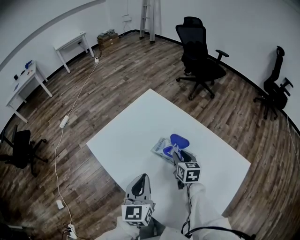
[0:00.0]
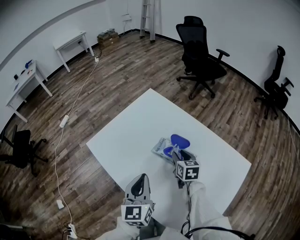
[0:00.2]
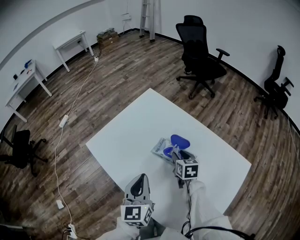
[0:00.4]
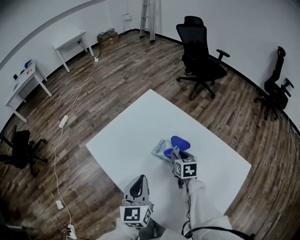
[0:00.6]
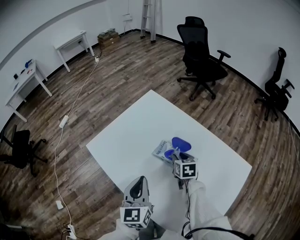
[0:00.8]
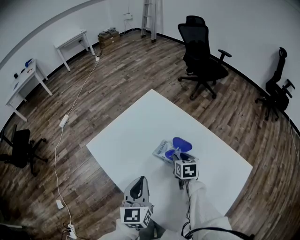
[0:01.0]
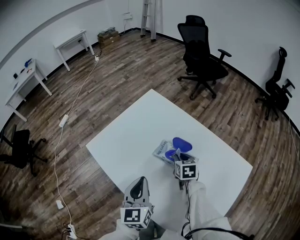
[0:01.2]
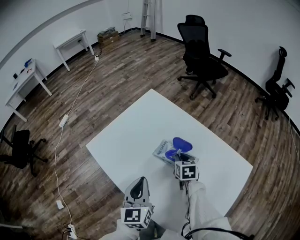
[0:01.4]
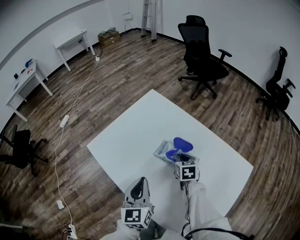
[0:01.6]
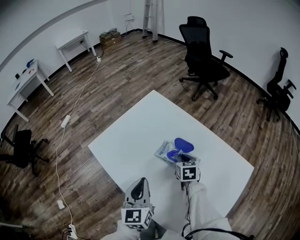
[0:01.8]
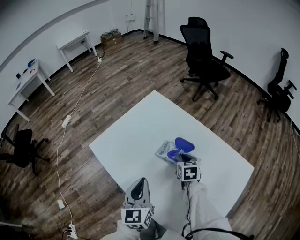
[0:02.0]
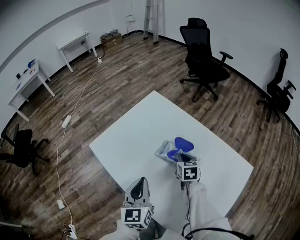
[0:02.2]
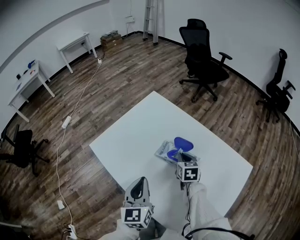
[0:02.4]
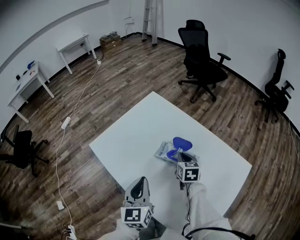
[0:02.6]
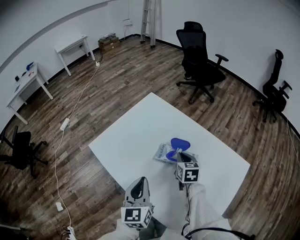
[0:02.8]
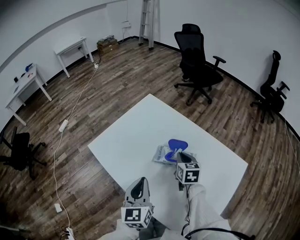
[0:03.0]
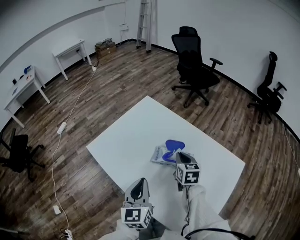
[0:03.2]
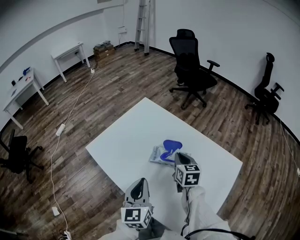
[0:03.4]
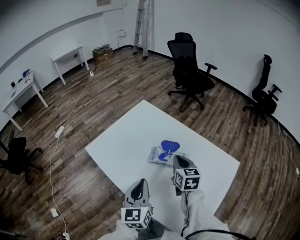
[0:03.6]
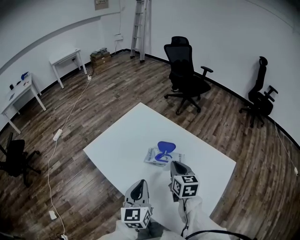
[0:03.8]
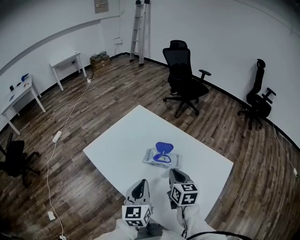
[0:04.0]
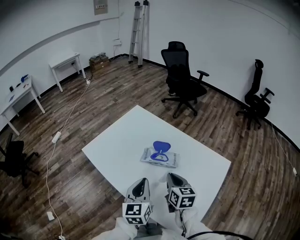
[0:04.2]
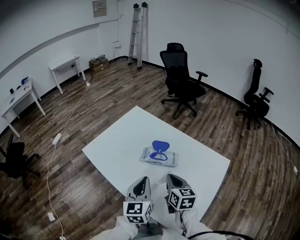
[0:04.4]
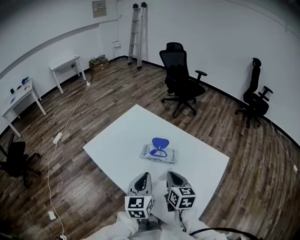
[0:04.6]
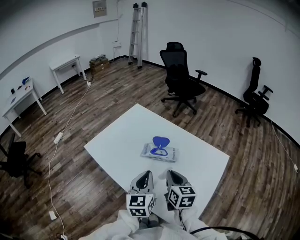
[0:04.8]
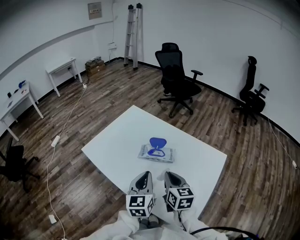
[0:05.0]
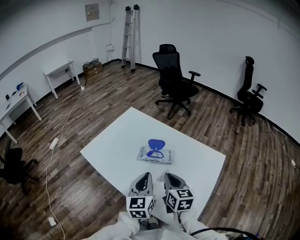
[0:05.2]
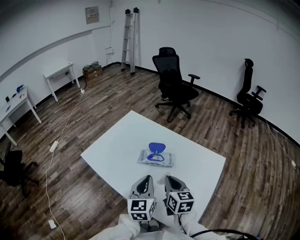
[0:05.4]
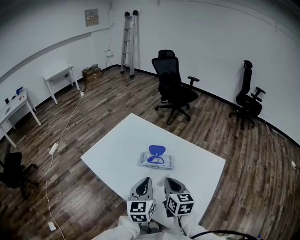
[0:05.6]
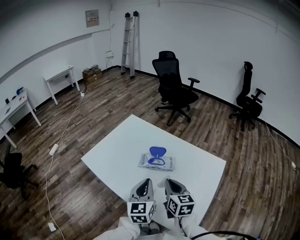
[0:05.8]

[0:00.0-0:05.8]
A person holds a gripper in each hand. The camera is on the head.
0:00.0 to 0:01.4: The grippers stay close to where they were, moving slightly.
0:01.4 to 0:02.8: The right gripper shifts roughly 5 cm upward.
0:02.8 to 0:04.4: The right gripper shifts roughly 20 cm backward and upward; the left gripper moves to the right and backward, approximately 10 cm.
0:04.4 to 0:05.8: There are only small adjustments of the grippers.

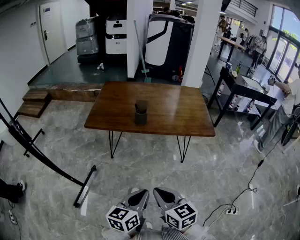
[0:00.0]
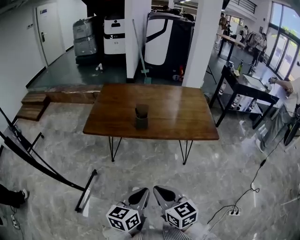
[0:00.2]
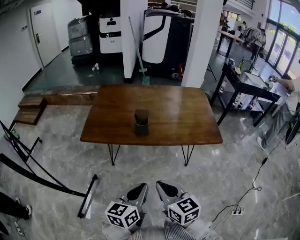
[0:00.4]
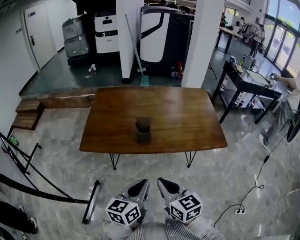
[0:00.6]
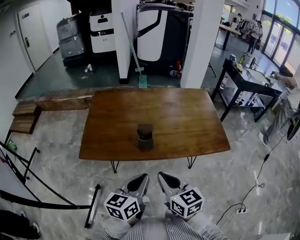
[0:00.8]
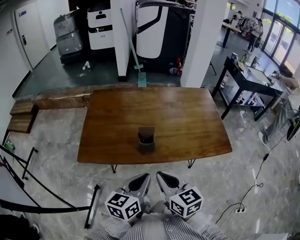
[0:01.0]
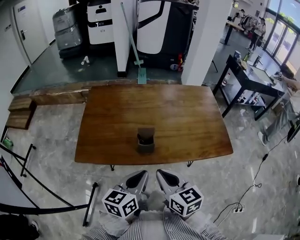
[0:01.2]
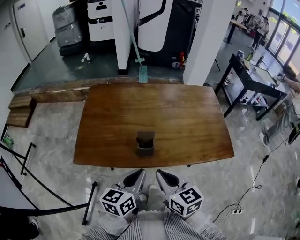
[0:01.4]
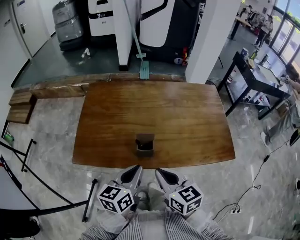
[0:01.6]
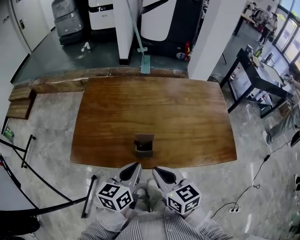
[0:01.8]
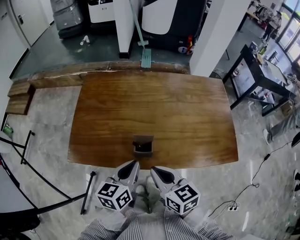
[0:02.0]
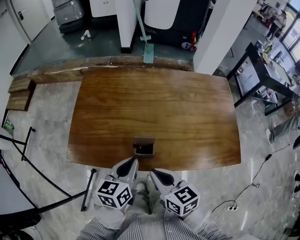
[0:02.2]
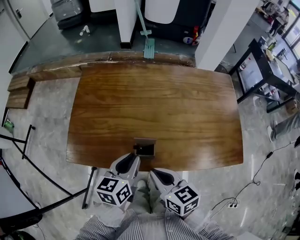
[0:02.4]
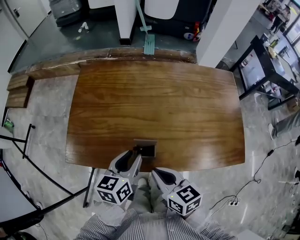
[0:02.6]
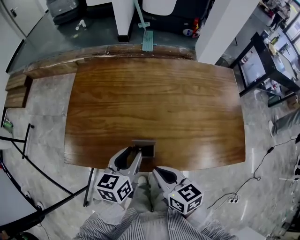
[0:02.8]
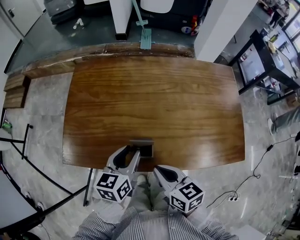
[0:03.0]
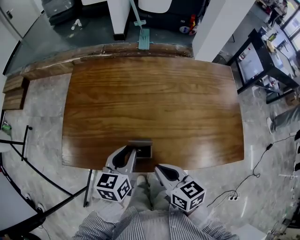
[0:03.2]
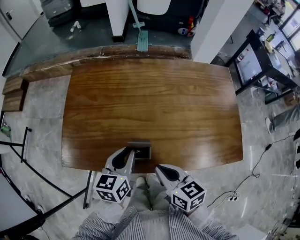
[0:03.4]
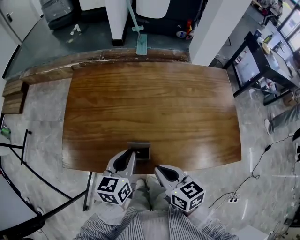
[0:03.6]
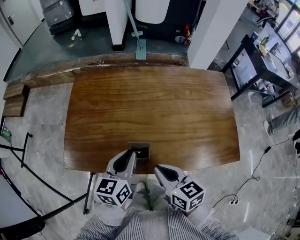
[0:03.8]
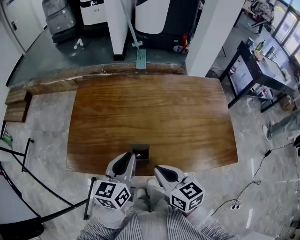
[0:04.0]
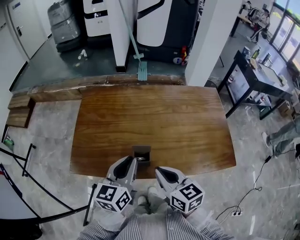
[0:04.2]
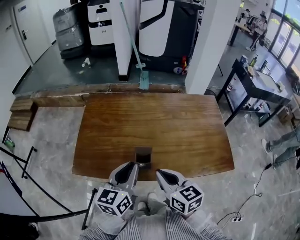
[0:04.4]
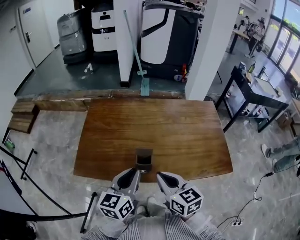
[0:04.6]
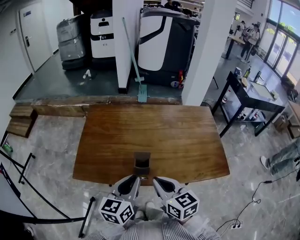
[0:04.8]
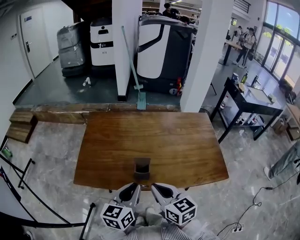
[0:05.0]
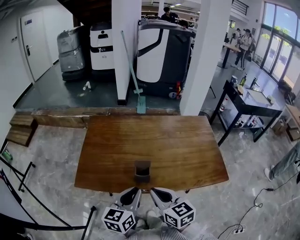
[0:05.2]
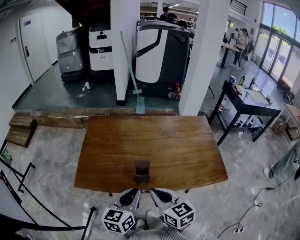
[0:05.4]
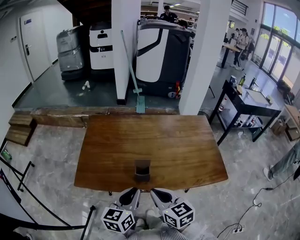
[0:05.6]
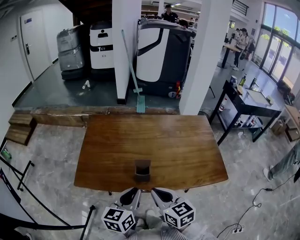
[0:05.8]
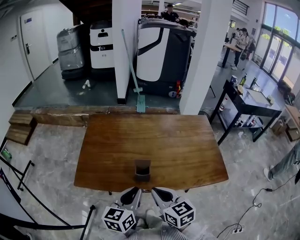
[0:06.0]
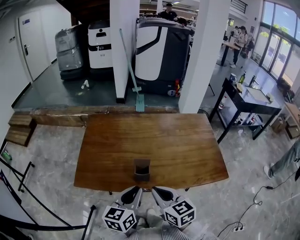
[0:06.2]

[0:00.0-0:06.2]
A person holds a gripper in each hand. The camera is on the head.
0:00.0 to 0:01.6: Both grippers travel together forward, approximately 40 cm.
0:01.6 to 0:03.2: The right gripper heads downward and forward, covering about 10 cm; the left gripper moves forward and downward, roughly 15 cm.
0:03.2 to 0:04.6: The right gripper is displaced upward by some 10 cm. The left gripper shifts approximately 15 cm upward and backward.
0:04.6 to 0:06.2: There are only small adjustments of the grippers.

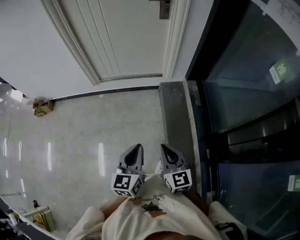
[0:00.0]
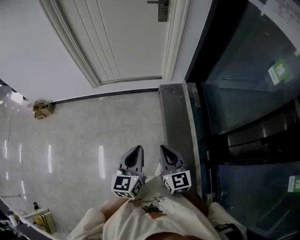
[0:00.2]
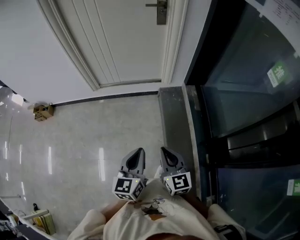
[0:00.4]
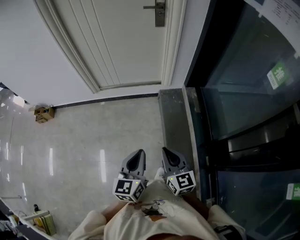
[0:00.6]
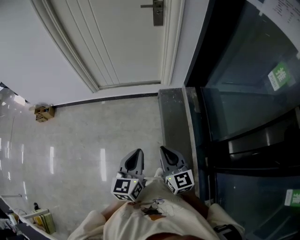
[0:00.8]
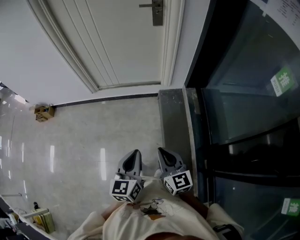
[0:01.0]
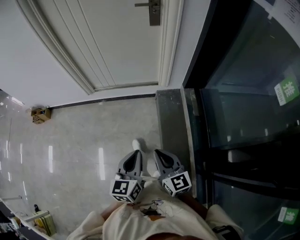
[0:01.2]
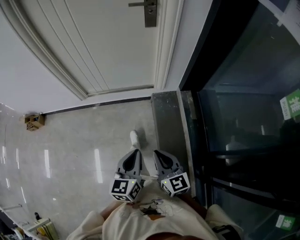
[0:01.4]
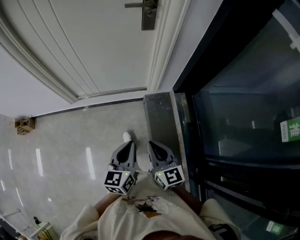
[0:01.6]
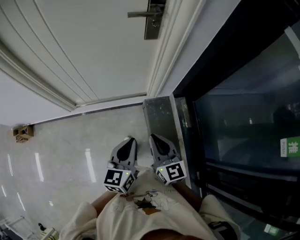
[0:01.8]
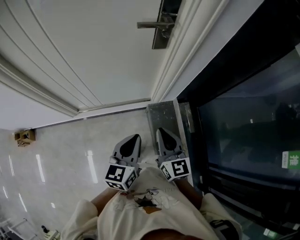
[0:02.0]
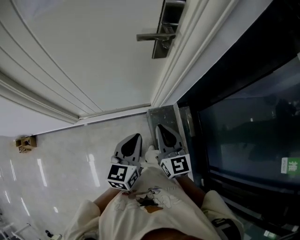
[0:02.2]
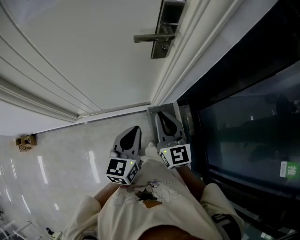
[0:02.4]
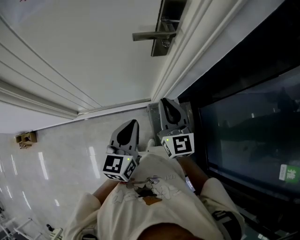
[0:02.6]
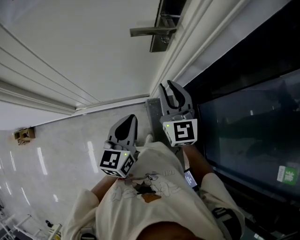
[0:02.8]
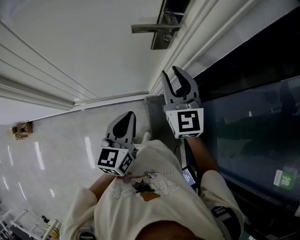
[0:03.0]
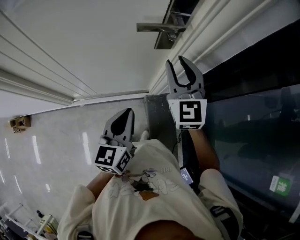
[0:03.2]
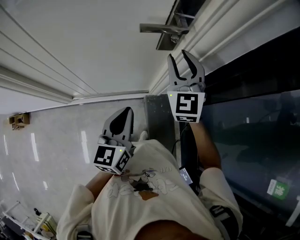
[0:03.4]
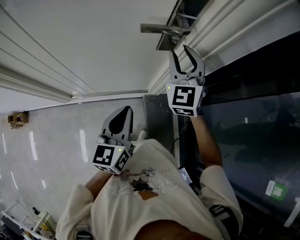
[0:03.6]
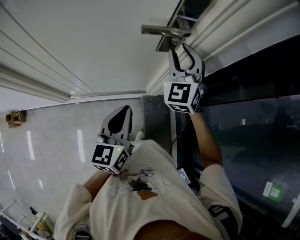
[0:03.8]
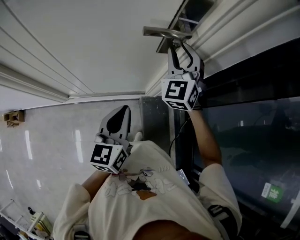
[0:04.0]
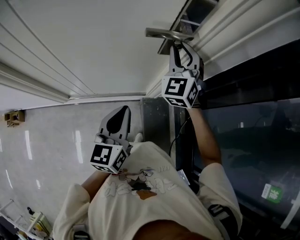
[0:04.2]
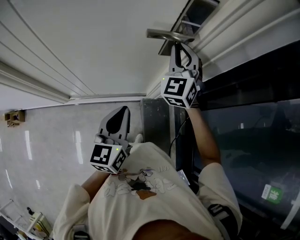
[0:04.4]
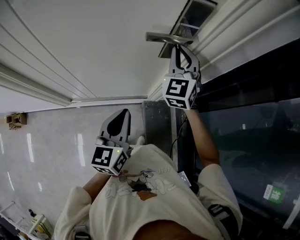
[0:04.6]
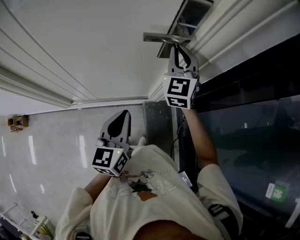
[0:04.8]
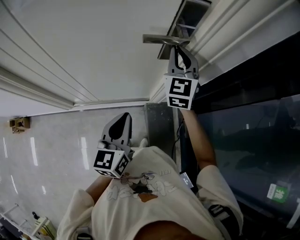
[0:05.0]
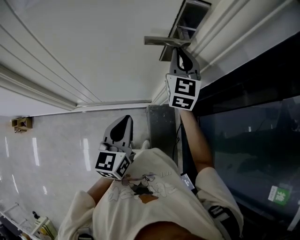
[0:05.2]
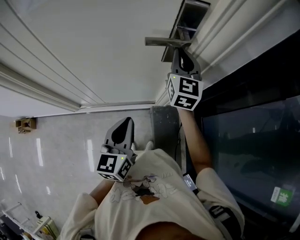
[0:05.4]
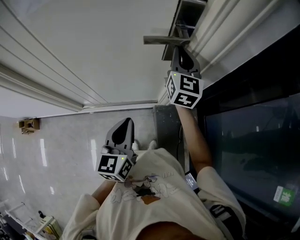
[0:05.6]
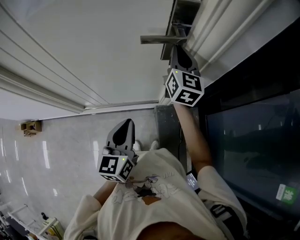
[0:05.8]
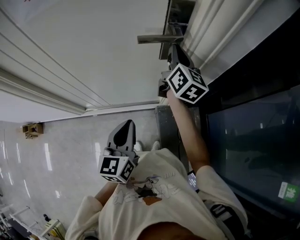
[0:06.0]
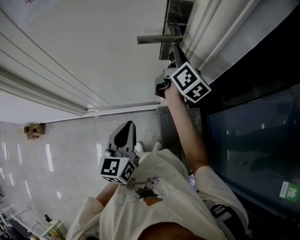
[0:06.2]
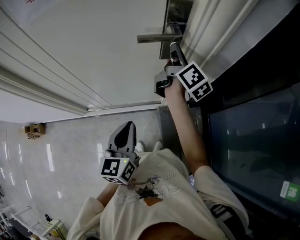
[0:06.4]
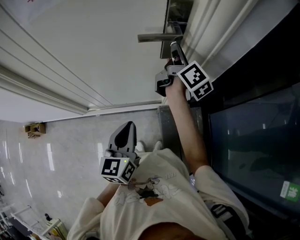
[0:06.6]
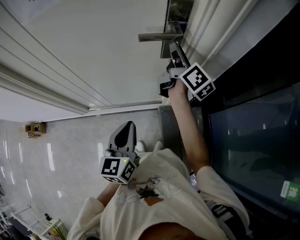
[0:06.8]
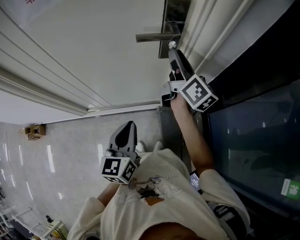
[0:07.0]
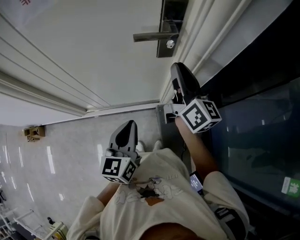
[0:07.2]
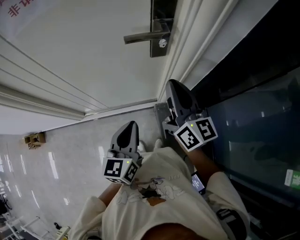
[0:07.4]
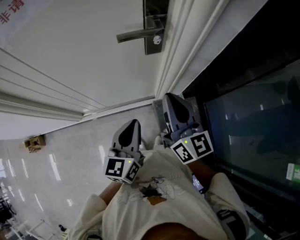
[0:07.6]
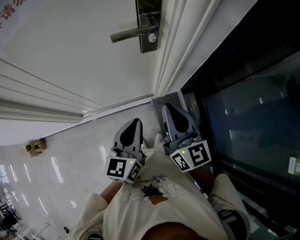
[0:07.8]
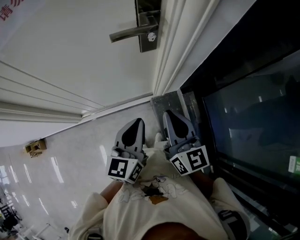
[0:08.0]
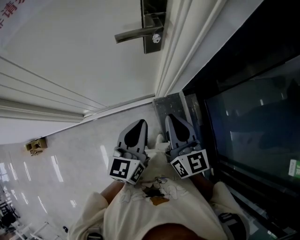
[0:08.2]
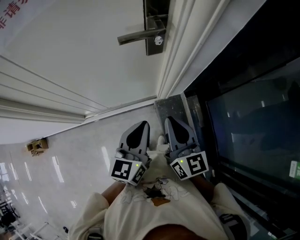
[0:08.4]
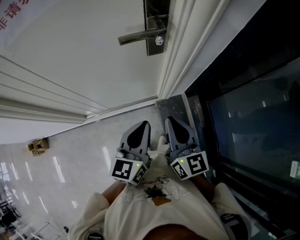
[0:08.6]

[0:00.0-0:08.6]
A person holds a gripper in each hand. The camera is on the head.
0:00.0 to 0:01.4: The right gripper goes about 20 cm forward; the left gripper is displaced forward and to the right by about 20 cm.
0:01.4 to 0:02.8: The two grippers travel together, forward, roughly 50 cm. The right gripper turns by about 30 degrees.
0:02.8 to 0:04.4: The right gripper shifts some 15 cm forward, and rotates some 30 degrees.
0:04.4 to 0:05.8: The right gripper rotates around the line of its fingers by about 50 degrees, clockwise from behind.
0:05.8 to 0:07.2: The right gripper travels backward by approximately 10 cm, and turns by some 30 degrees.
0:07.2 to 0:08.6: The right gripper goes about 15 cm backward and downward, and swivels roughly 20 degrees. Meanwhile the left gripper goes roughly 5 cm to the right.

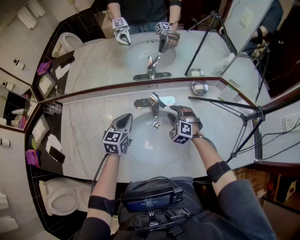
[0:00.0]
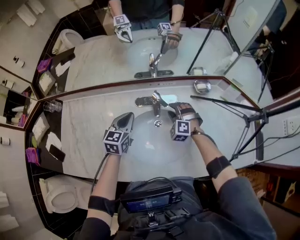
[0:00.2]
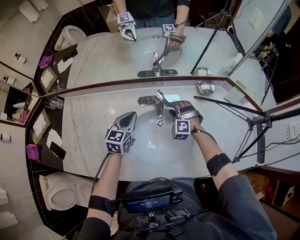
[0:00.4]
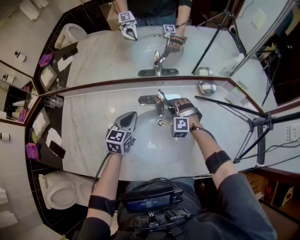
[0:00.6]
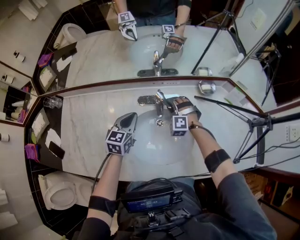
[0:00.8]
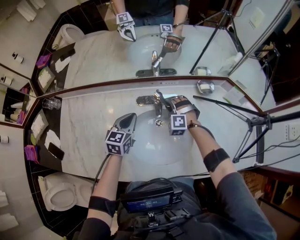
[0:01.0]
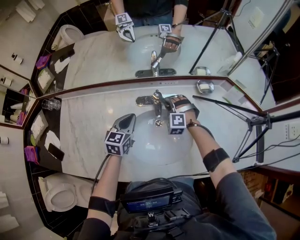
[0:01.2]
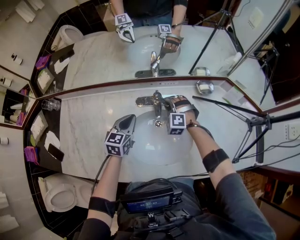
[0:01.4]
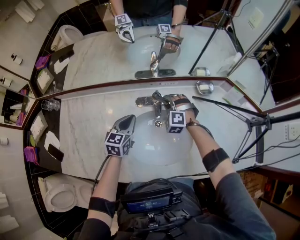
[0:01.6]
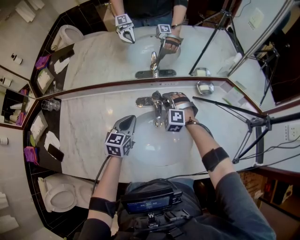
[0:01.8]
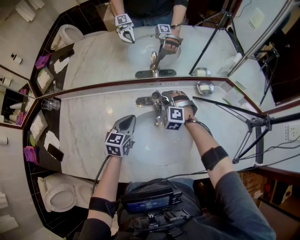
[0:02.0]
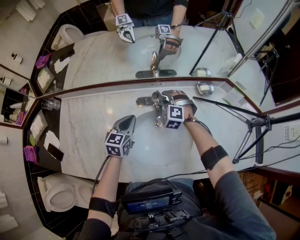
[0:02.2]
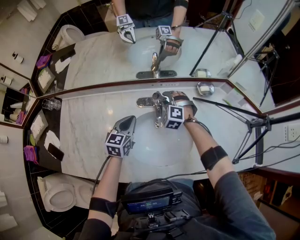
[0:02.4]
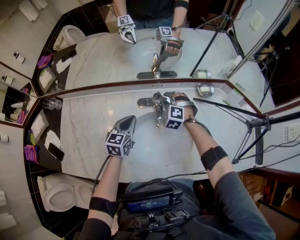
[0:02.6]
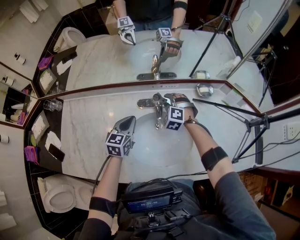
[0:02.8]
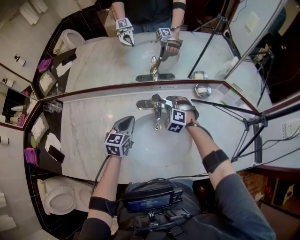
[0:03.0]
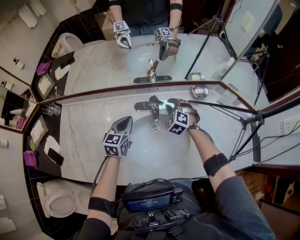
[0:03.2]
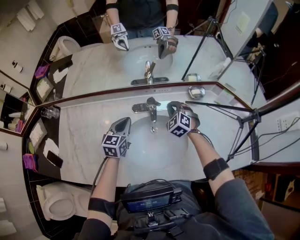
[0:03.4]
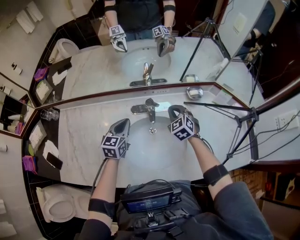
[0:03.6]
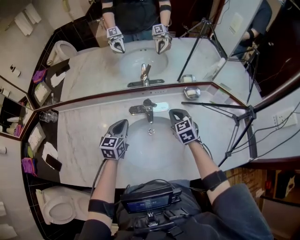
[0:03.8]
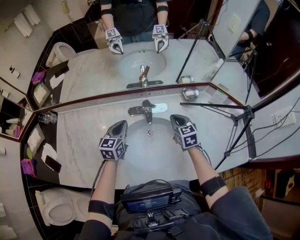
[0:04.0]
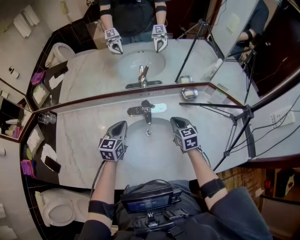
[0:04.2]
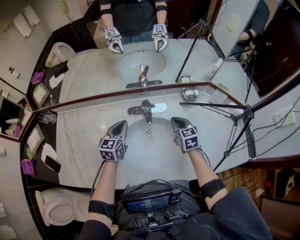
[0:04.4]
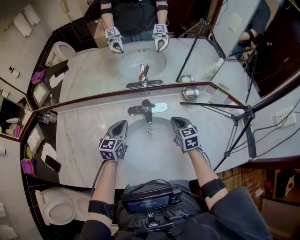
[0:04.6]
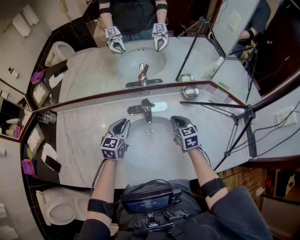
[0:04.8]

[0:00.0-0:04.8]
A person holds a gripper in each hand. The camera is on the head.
0:00.0 to 0:01.6: The right gripper moves forward, roughly 5 cm.
0:01.6 to 0:03.2: The grippers make only small movements.
0:03.2 to 0:04.8: The right gripper moves backward and to the right, roughly 10 cm, and twists approximately 50 degrees clockwise, seen from behind.
